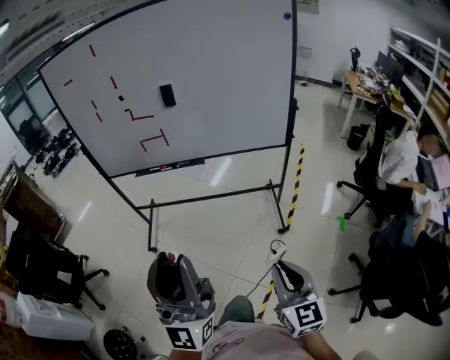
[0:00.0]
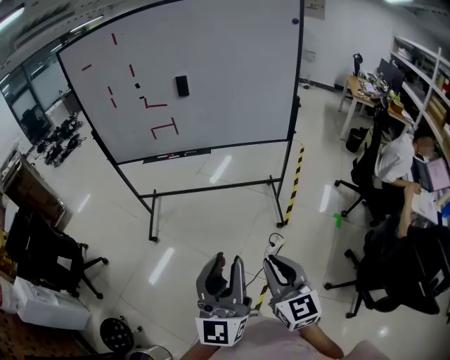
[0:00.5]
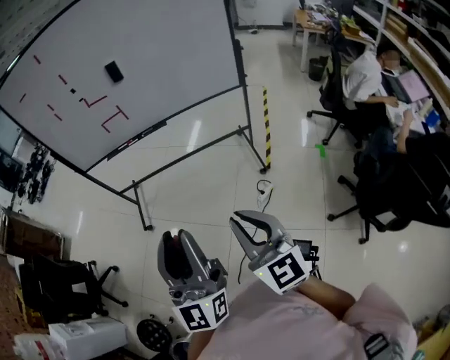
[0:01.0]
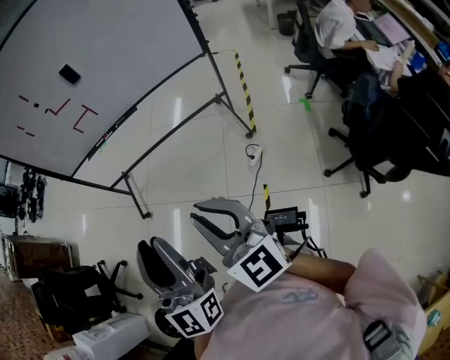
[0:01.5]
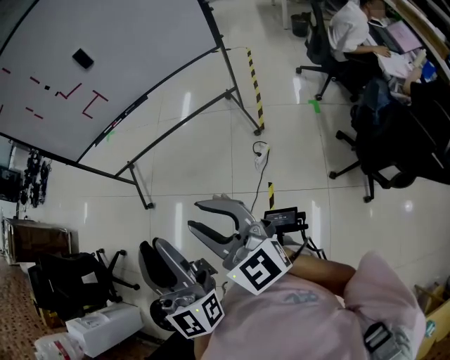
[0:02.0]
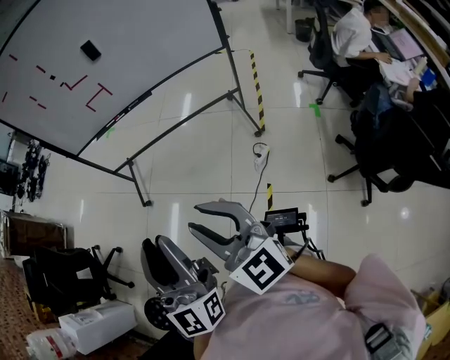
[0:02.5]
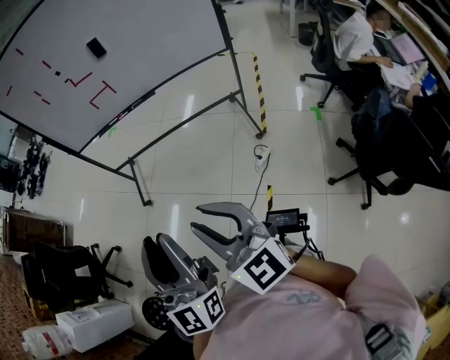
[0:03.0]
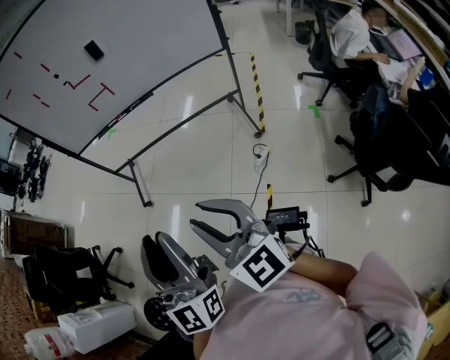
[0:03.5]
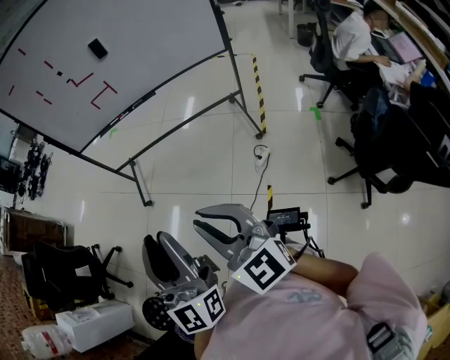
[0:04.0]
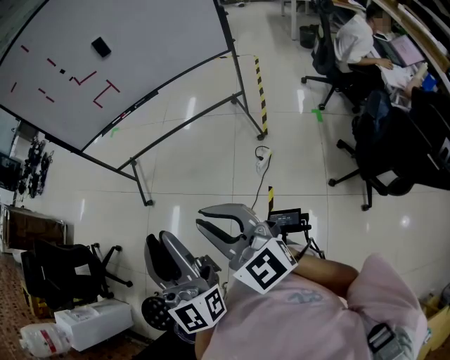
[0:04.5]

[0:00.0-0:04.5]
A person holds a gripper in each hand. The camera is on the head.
0:00.0 to 0:02.0: The right gripper shifts roughly 20 cm to the left and backward, and opens up. Meanwhile the left gripper travels backward and downward by some 15 cm, and swivels roughly 20 degrees.
0:02.0 to 0:04.5: The right gripper ends up some 5 cm from where it was.

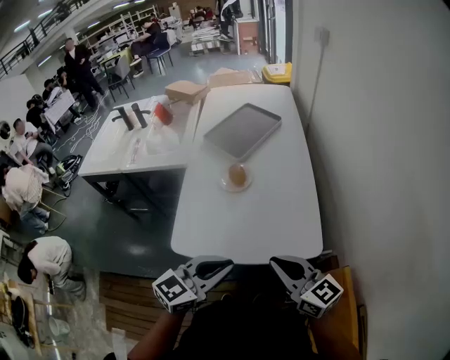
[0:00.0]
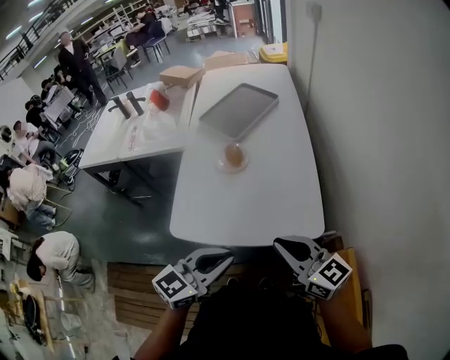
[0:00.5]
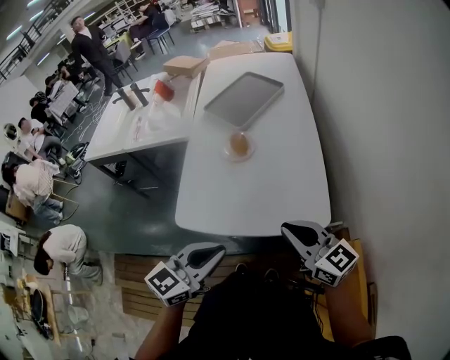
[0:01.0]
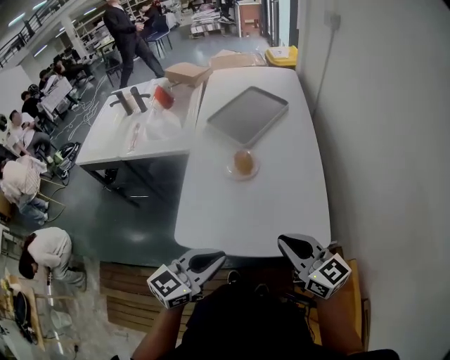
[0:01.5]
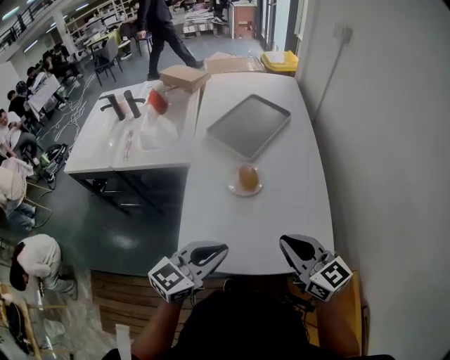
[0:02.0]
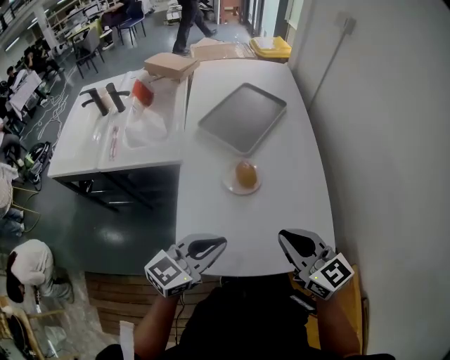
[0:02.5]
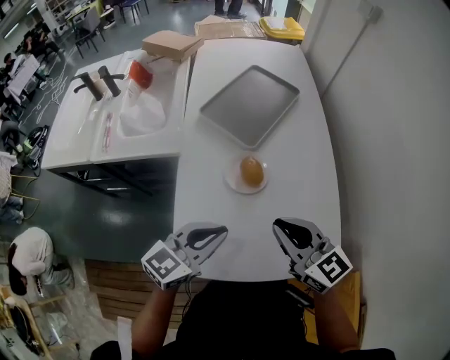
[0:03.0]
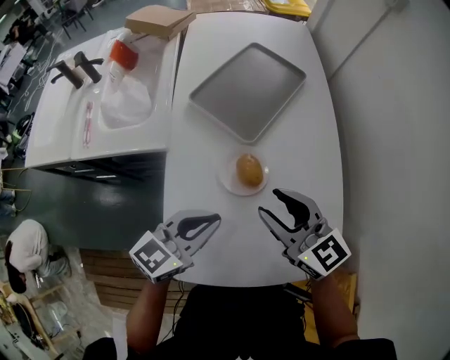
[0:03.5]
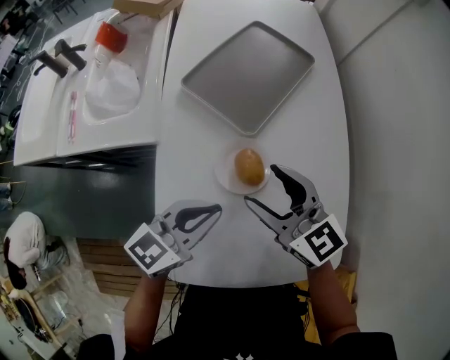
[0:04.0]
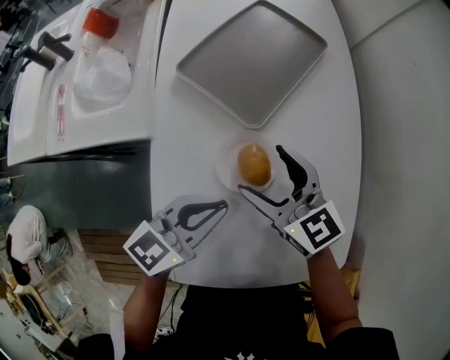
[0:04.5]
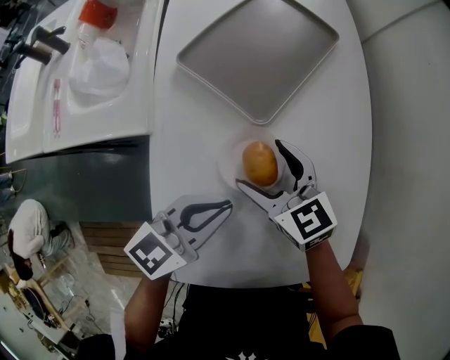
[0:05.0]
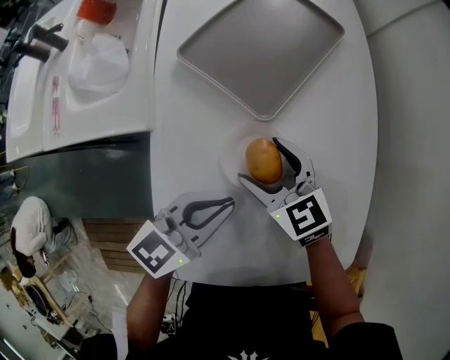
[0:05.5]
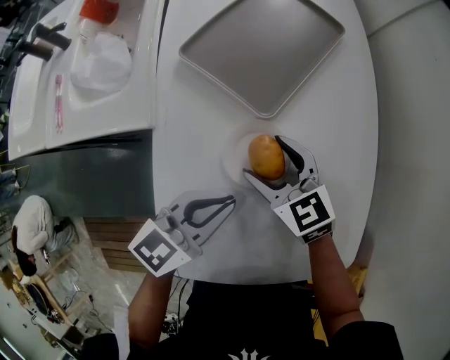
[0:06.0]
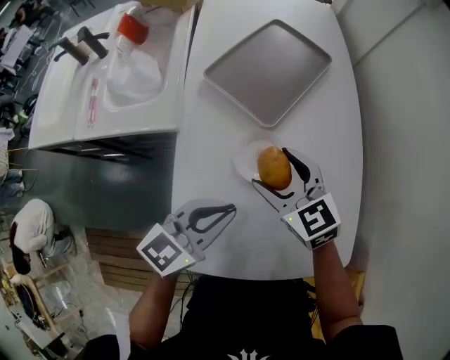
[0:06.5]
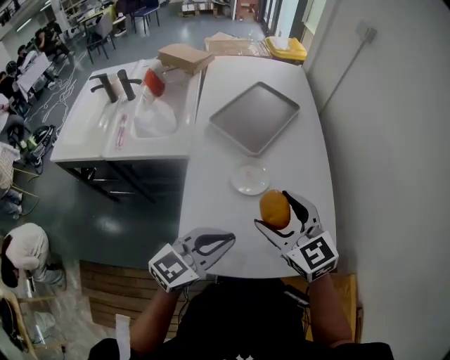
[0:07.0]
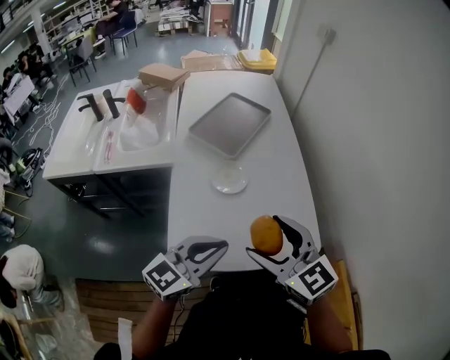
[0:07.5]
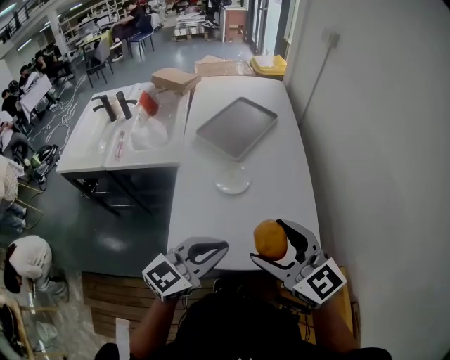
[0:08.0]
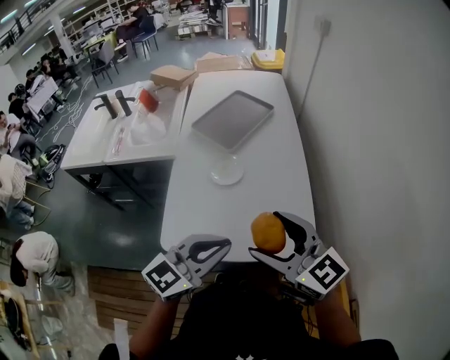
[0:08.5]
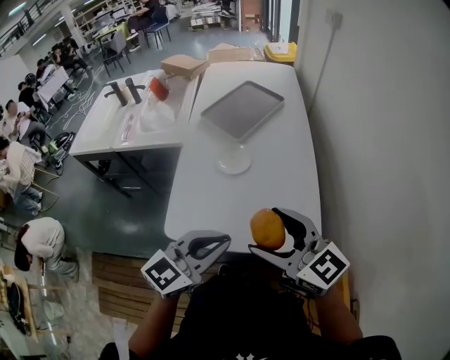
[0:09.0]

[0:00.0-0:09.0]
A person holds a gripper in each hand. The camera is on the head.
0:00.0 to 0:02.0: The two grippers go some 15 cm forward and to the left.
0:02.0 to 0:04.5: The right gripper goes some 35 cm forward, downward and to the left, and opens up; the left gripper is displaced forward and downward by approximately 25 cm.
0:04.5 to 0:07.0: Both grippers travel together backward and upward, some 20 cm.
0:07.0 to 0:09.0: The right gripper heads backward and to the right, covering some 20 cm, and rotates about 20 degrees. The left gripper shifts approximately 20 cm to the right, backward and upward.

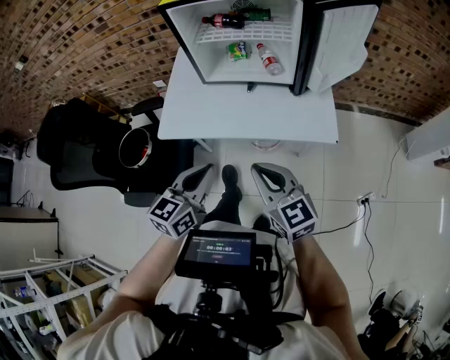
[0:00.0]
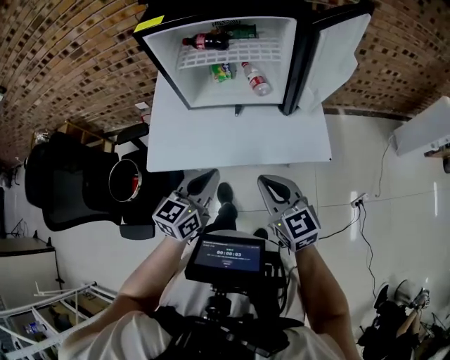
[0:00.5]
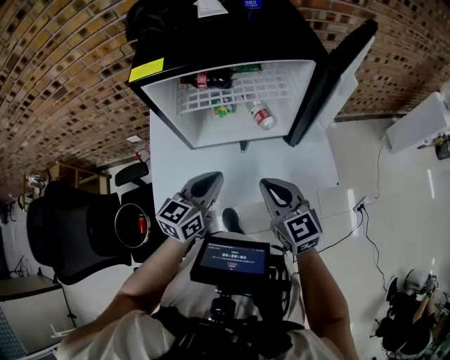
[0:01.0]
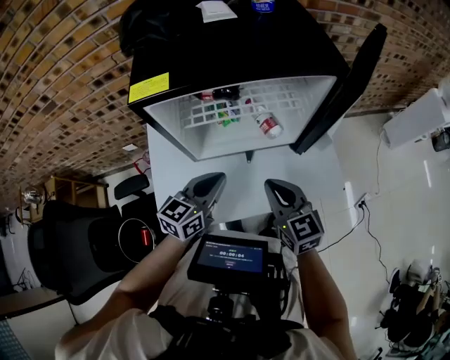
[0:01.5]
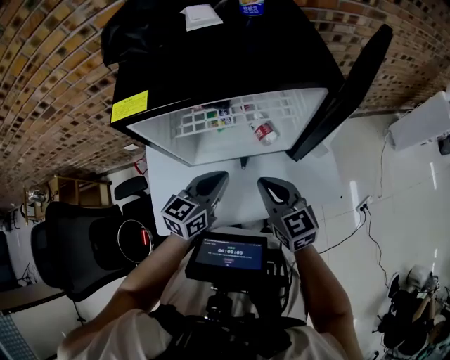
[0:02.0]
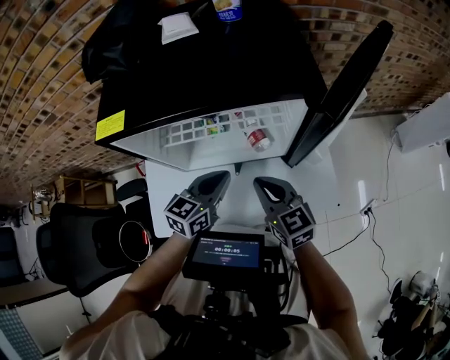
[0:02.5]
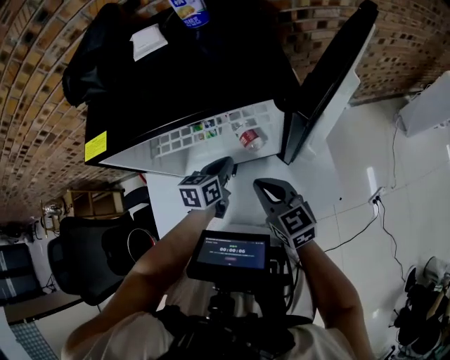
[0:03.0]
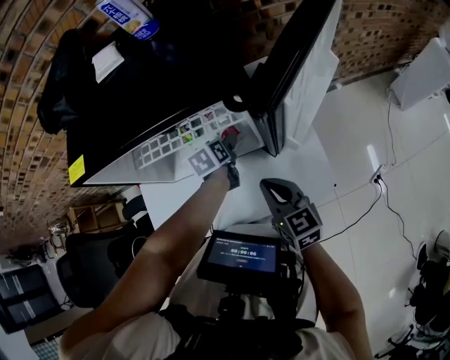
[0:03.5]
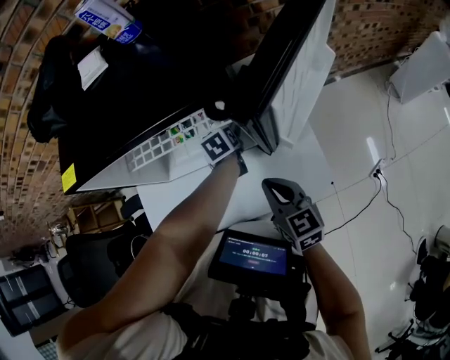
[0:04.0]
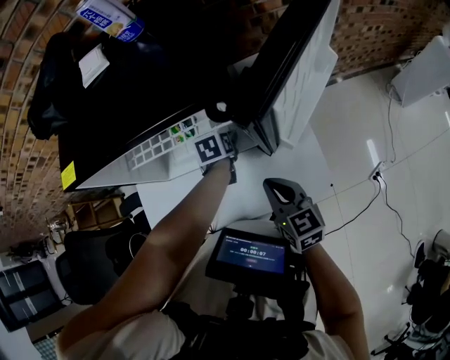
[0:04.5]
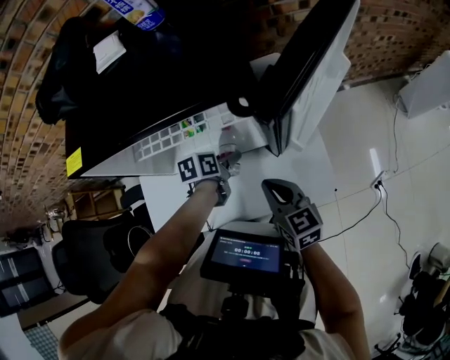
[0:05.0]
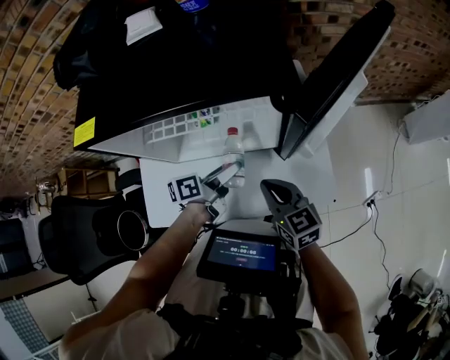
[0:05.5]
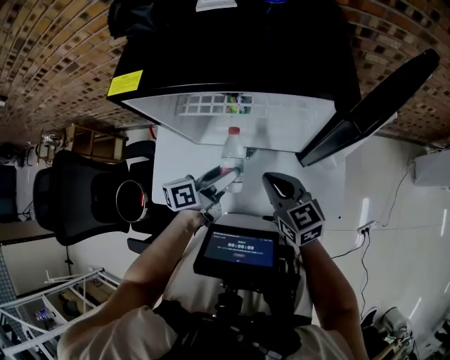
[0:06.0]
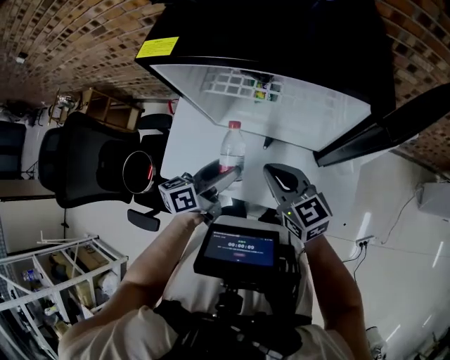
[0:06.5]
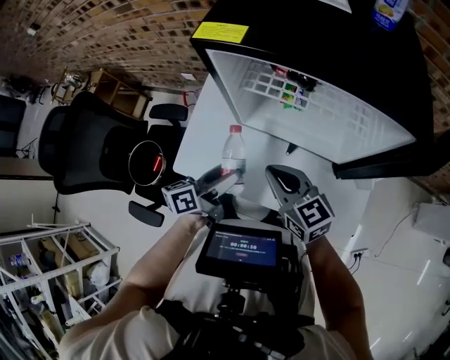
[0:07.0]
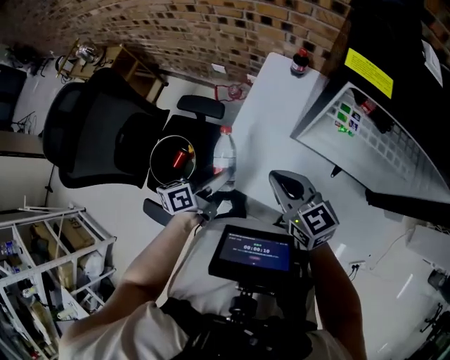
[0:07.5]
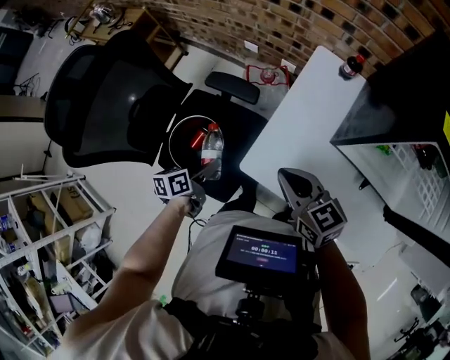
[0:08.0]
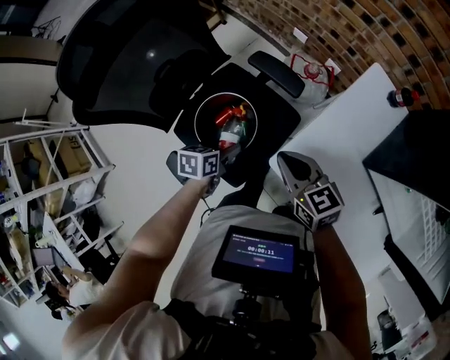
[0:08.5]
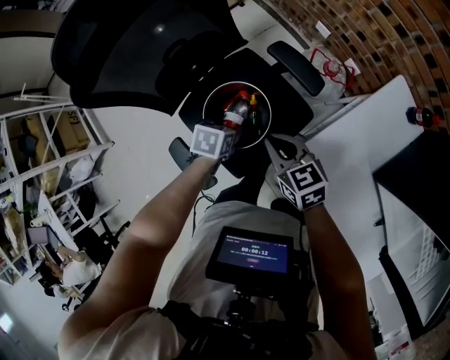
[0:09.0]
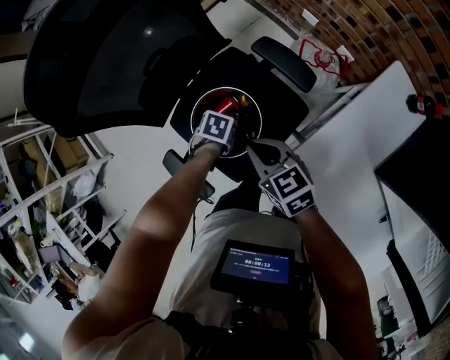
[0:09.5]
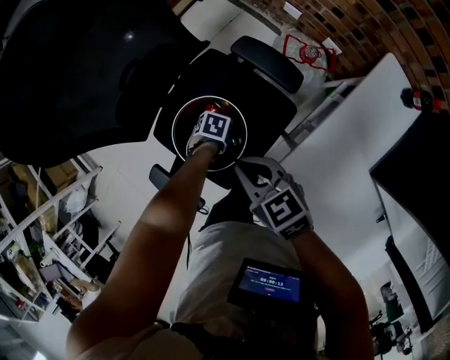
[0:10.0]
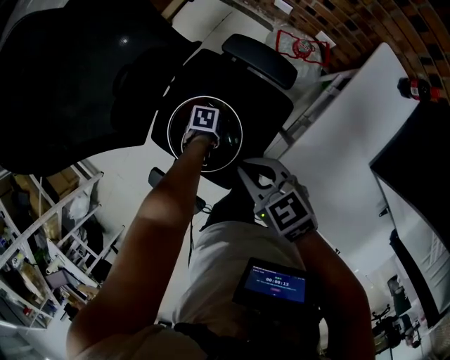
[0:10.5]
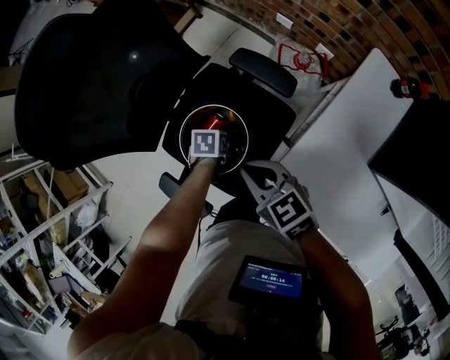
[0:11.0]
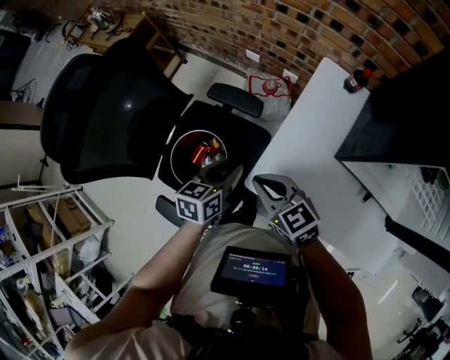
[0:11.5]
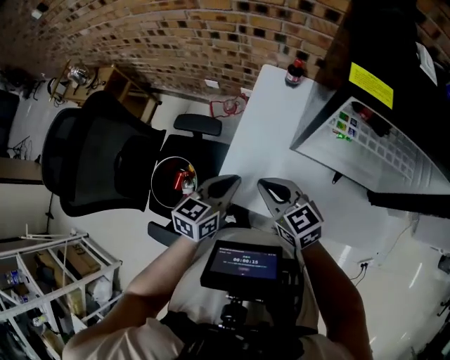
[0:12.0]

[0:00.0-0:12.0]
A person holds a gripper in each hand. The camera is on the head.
0:00.0 to 0:02.0: Both grippers travel together forward, some 30 cm. The left gripper rotates approximately 20 degrees.
0:02.0 to 0:04.0: The right gripper moves to the right and downward, some 15 cm; the left gripper shifts some 25 cm forward, downward and to the right, tilts its fingers approximately 30 degrees downward, and opens its fingers.
0:04.0 to 0:06.0: The right gripper travels to the left by some 10 cm, and turns by roughly 20 degrees; the left gripper moves backward, upward and to the left, approximately 25 cm, and tilts its fingers approximately 40 degrees upward.
0:06.0 to 0:08.0: Both grippers are carried roughly 50 cm. The right gripper swivels roughly 30 degrees. The left gripper swivels roughly 40 degrees.
0:08.0 to 0:10.0: The right gripper ends up approximately 25 cm from where it was, and changes its angle by roughly 30 degrees. The left gripper travels downward by approximately 25 cm, and tips its fingers downward by some 50 degrees.
0:10.0 to 0:12.0: The right gripper changes place by some 30 cm, and swivels approximately 40 degrees. Meanwhile the left gripper goes approximately 35 cm upward, angles its fingers upward, by about 50 degrees, and closes up.

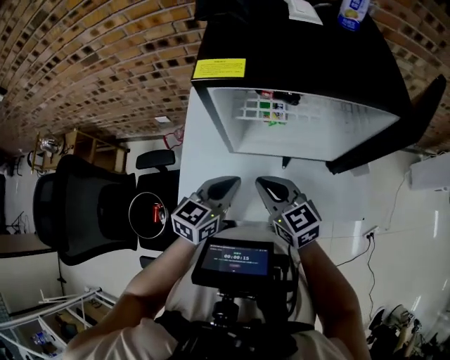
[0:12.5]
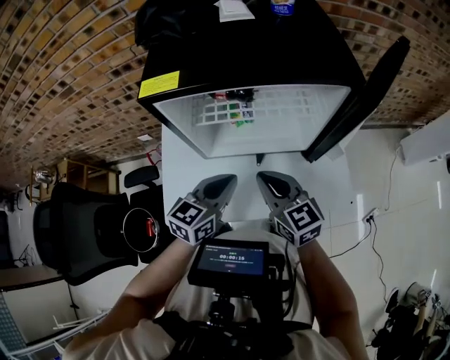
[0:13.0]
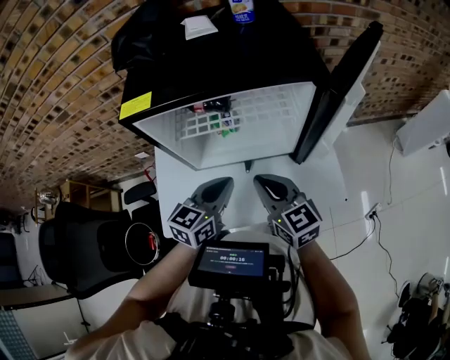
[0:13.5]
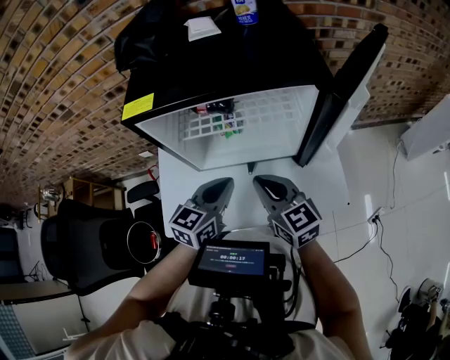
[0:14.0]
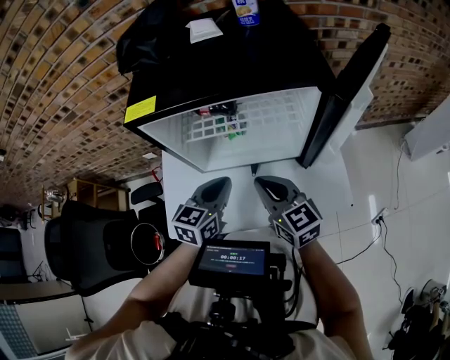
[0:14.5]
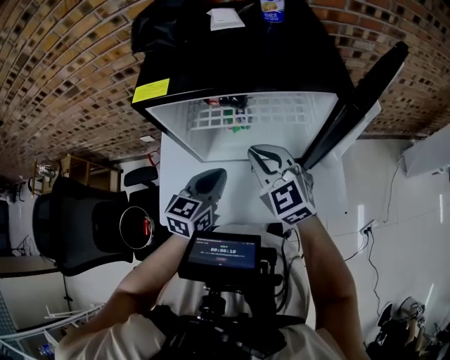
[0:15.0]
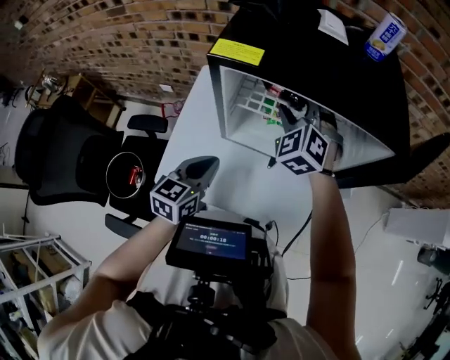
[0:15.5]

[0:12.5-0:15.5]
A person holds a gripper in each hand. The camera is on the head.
0:12.5 to 0:14.0: The grippers both shift to the right by some 10 cm.
0:14.0 to 0:15.5: The right gripper moves forward and to the left, some 20 cm, rotates around the line of its fingers by roughly 60 degrees, counterclockwise from behind, and opens; the left gripper moves to the left, approximately 15 cm, and turns by about 20 degrees.
